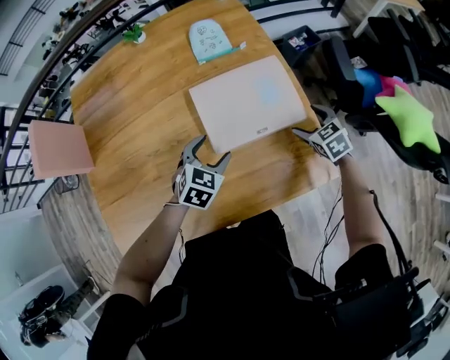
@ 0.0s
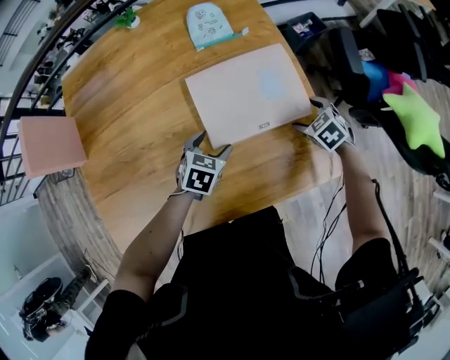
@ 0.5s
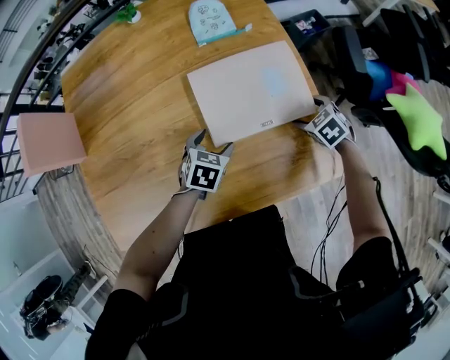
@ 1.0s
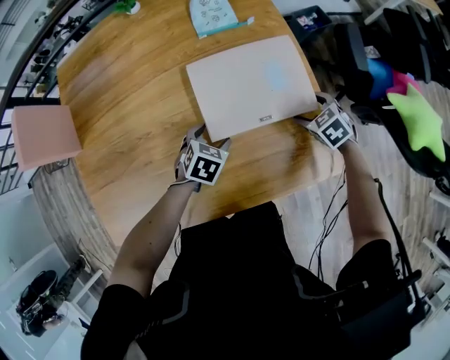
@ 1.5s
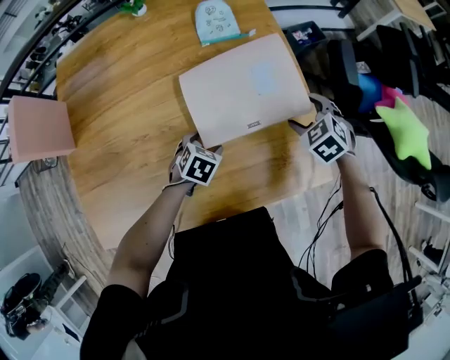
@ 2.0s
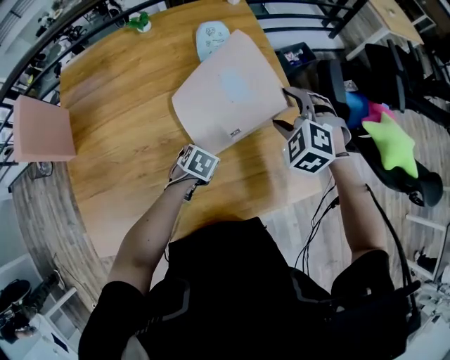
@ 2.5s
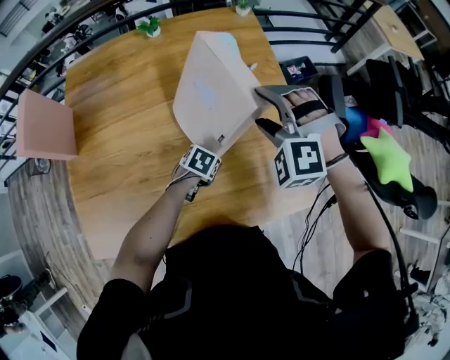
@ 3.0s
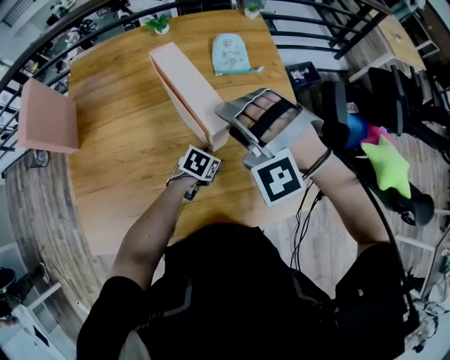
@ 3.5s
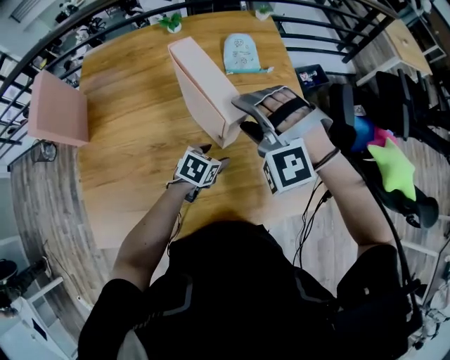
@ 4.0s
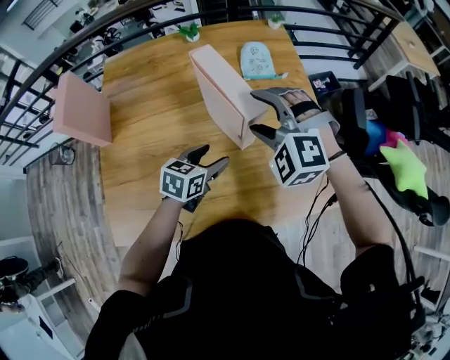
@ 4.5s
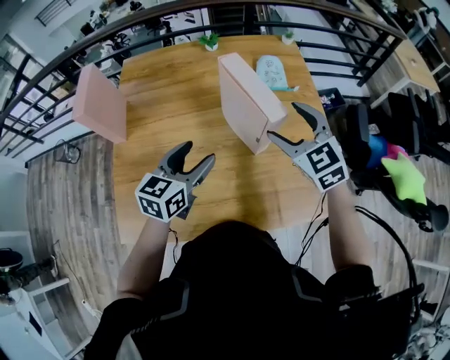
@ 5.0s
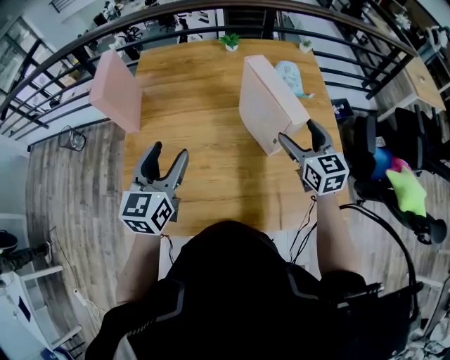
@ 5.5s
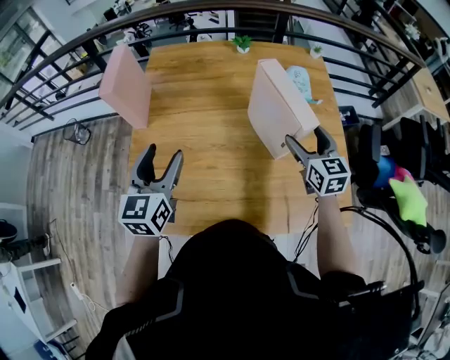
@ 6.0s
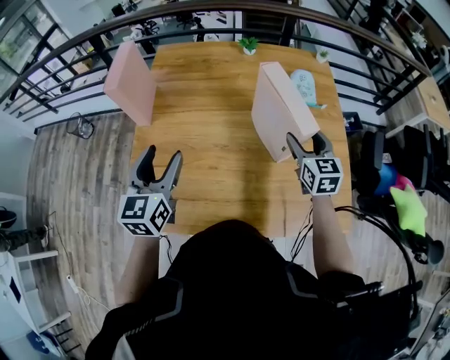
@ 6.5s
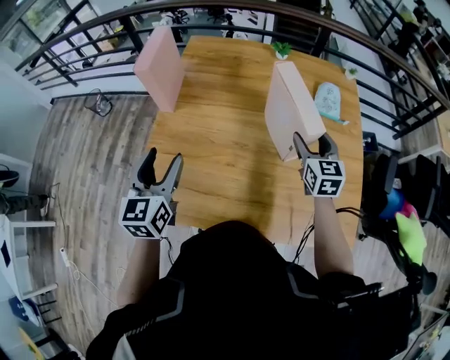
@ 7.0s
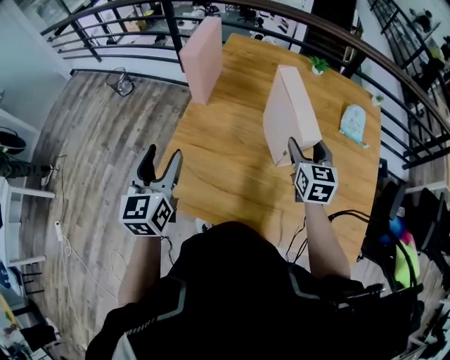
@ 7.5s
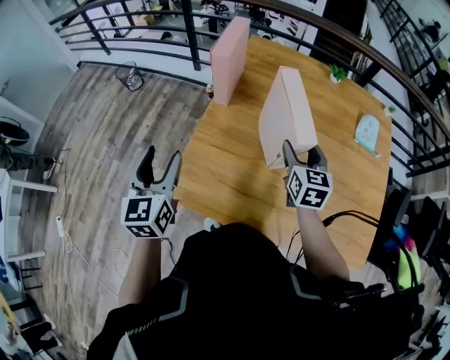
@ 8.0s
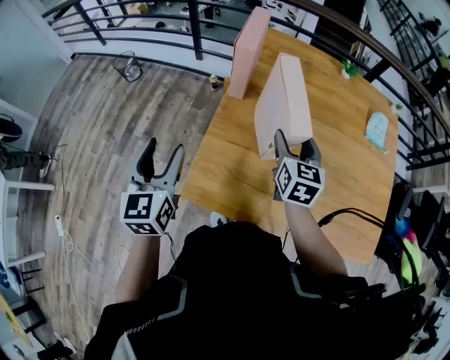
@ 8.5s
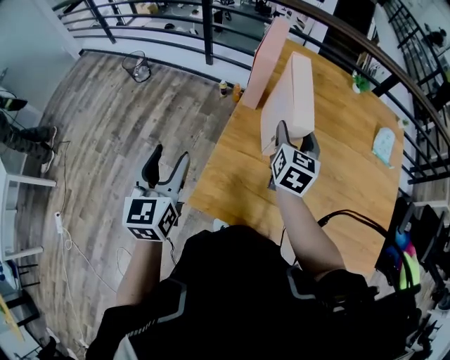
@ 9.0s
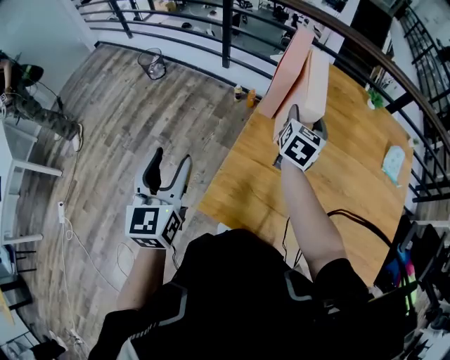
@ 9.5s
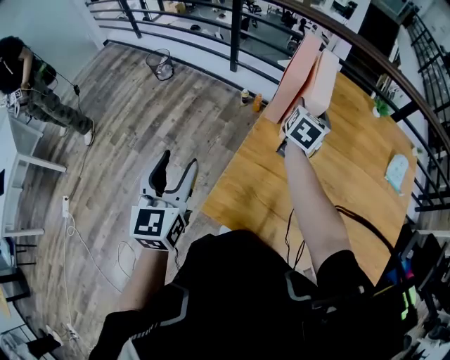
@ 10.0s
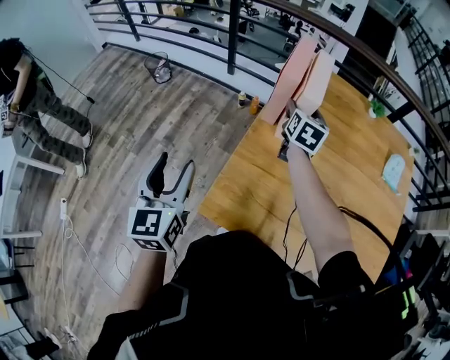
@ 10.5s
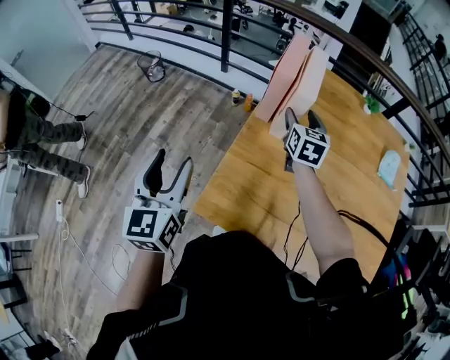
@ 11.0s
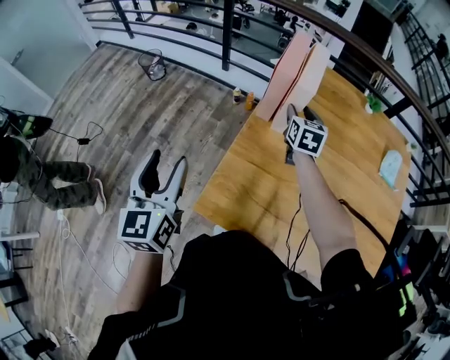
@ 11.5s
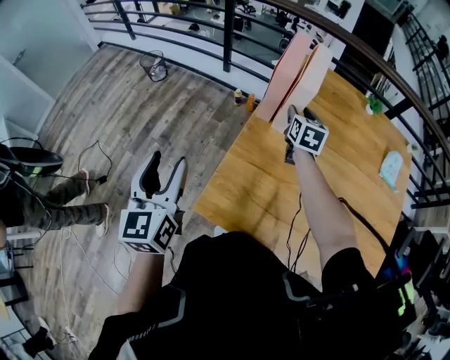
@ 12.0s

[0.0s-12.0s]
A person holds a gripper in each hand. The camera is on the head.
0.0s to 2.0s: The left gripper is displaced downward by about 10 cm, and rotates roughly 20 degrees. Meanwhile the right gripper ends up roughly 5 cm from where it was, and rotates approximately 20 degrees.
2.0s to 4.0s: The left gripper travels upward by some 5 cm, while the right gripper travels to the left and upward by approximately 30 cm, and rolls counterclockwise, seen from behind, by about 60 degrees.
4.0s to 6.0s: The left gripper changes place by some 40 cm, and angles its fingers upward, by approximately 40 degrees. The right gripper twists about 90 degrees clockwise, seen from behind.
6.0s to 8.0s: Both grippers travel together to the left, roughly 30 cm. The left gripper turns by some 30 degrees.
8.0s to 10.0s: The right gripper shifts approximately 25 cm forward and to the left, and rotates roughly 20 degrees, while the left gripper is displaced to the left by approximately 10 cm.

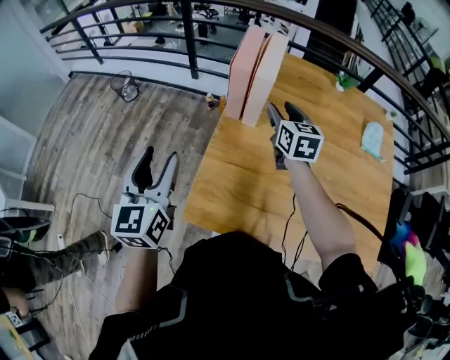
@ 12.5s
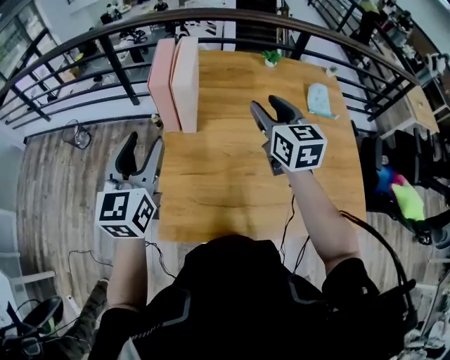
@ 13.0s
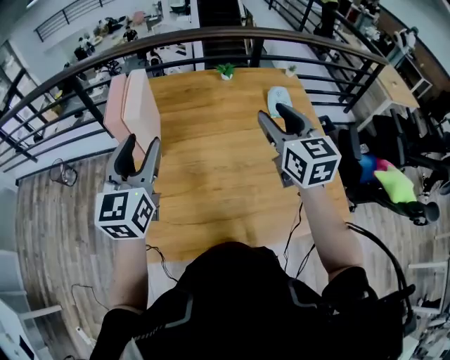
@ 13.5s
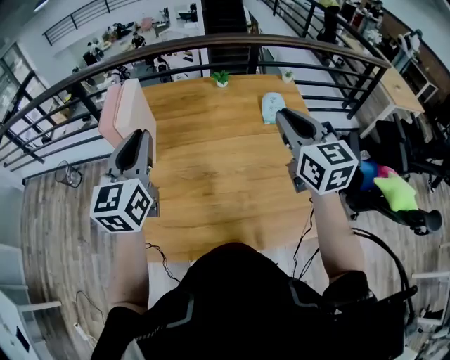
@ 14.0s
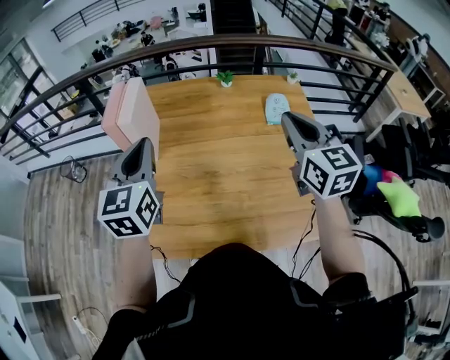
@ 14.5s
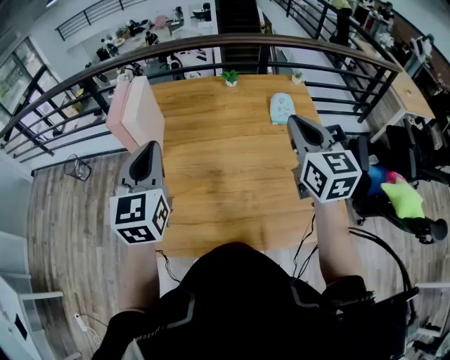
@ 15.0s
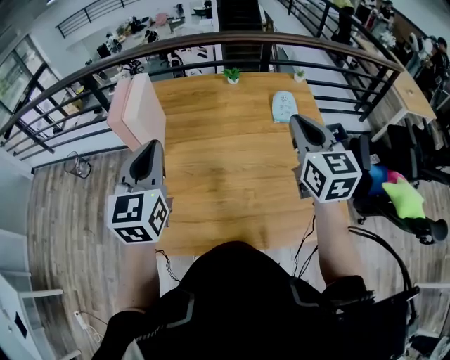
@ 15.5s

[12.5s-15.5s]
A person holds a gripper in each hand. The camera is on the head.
12.5s to 14.0s: The left gripper heads to the right, covering about 30 cm, changes its angle by about 20 degrees, and closes its fingers, while the right gripper goes about 40 cm to the right, upward and backward, and closes up.
14.0s to 15.5s: The grippers make only small movements.

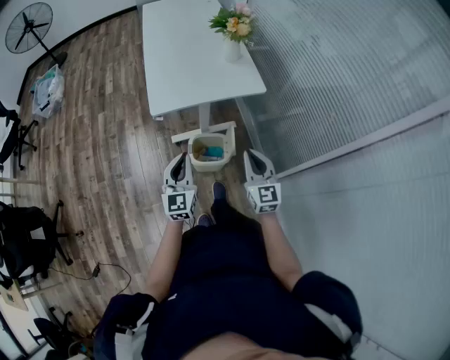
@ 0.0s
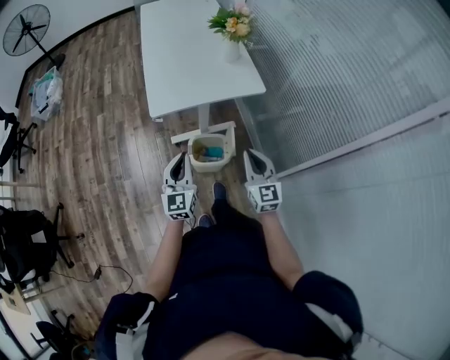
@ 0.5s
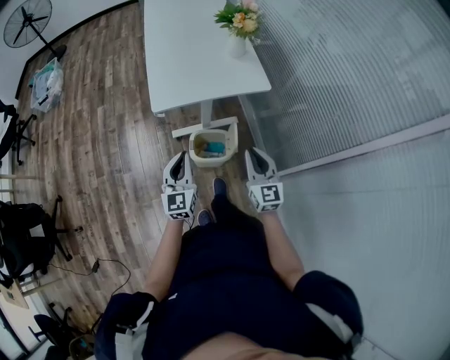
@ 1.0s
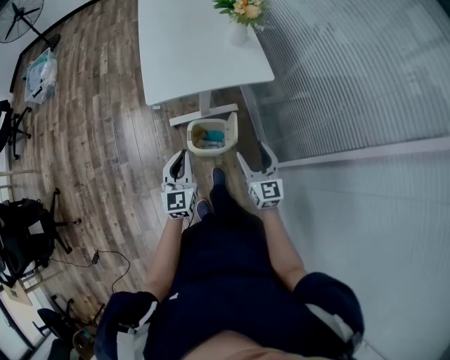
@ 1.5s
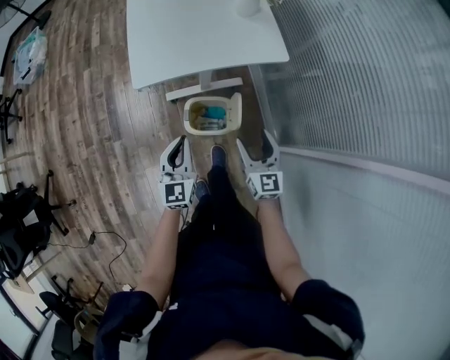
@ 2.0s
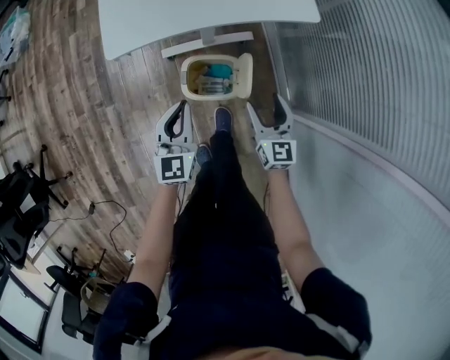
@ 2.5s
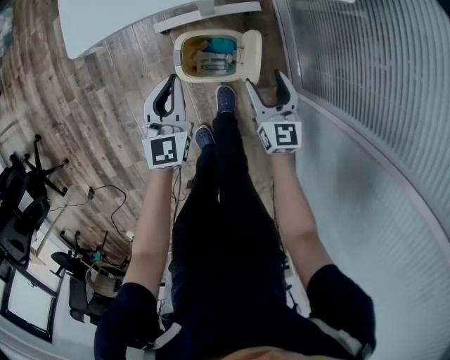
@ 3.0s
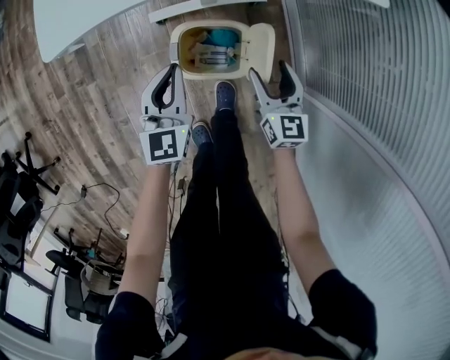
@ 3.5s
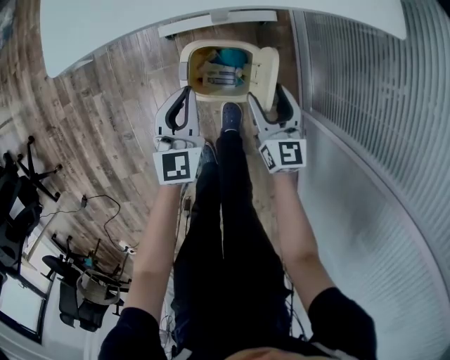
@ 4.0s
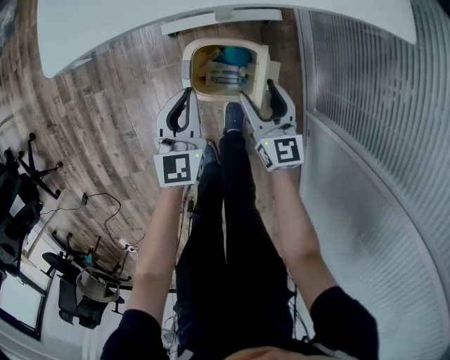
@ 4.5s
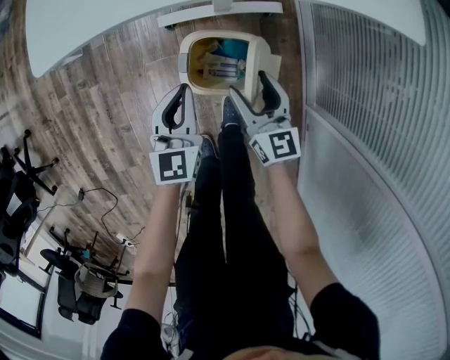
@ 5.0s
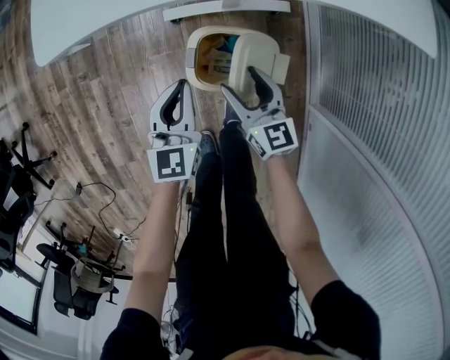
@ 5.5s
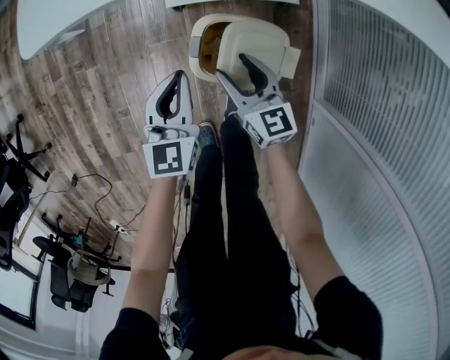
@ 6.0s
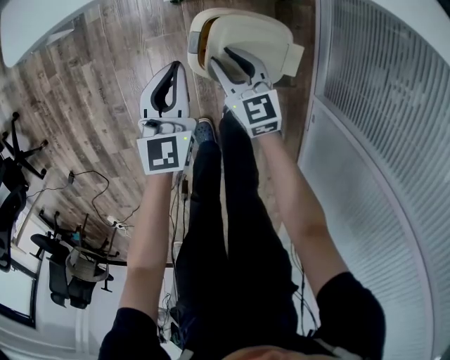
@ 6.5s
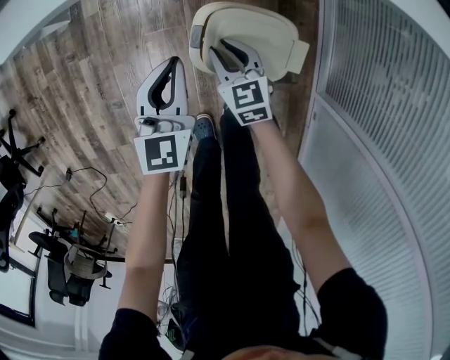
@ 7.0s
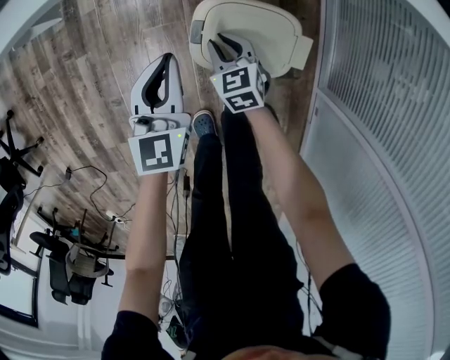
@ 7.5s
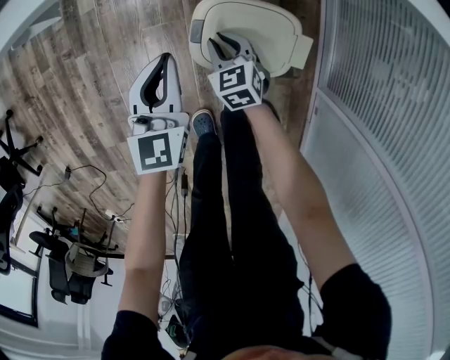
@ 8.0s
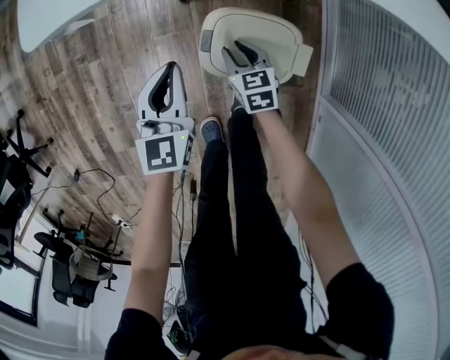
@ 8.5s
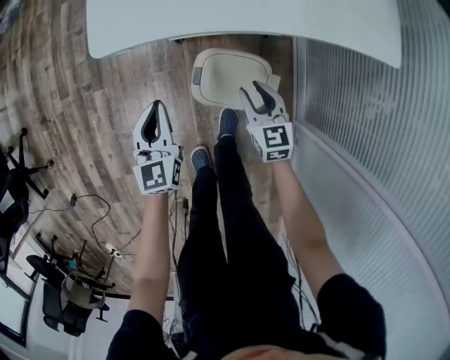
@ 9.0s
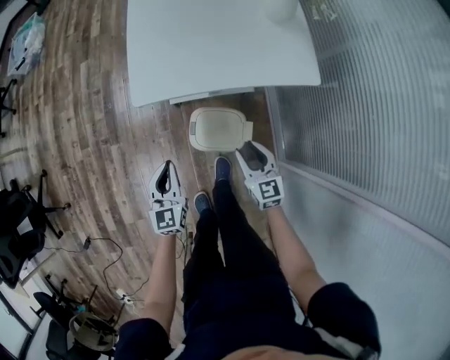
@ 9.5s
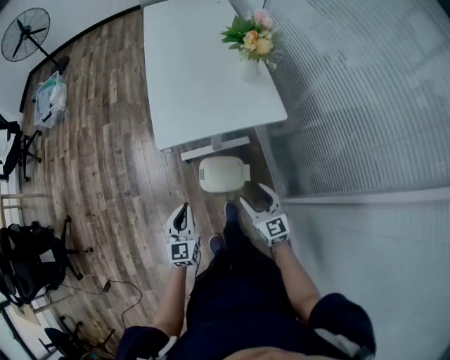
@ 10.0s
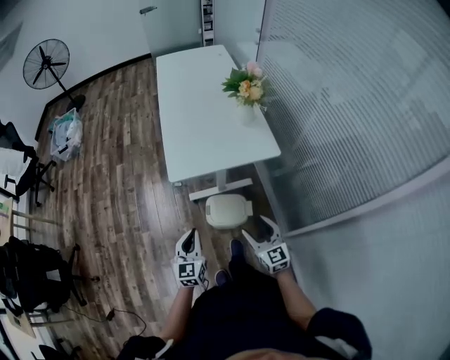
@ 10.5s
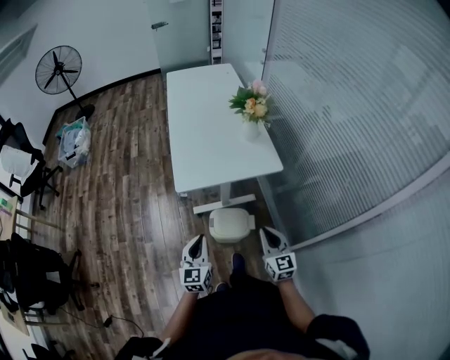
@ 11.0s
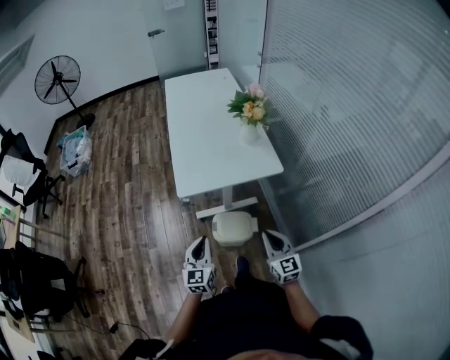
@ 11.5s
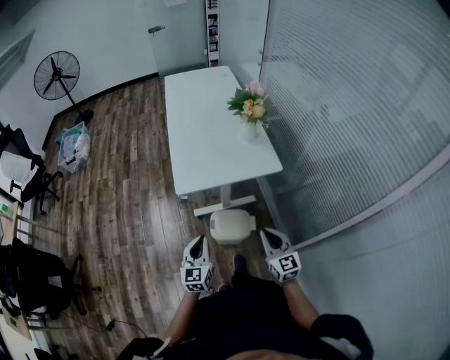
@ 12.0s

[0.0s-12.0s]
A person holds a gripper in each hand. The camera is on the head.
0.0s to 2.0s: Both grippers travel together downward and forward, approximately 15 cm. The right gripper opens up.
2.0s to 4.0s: The left gripper travels downward and forward by about 25 cm; the right gripper moves downward, about 30 cm.
4.0s to 6.0s: The left gripper is displaced to the left by approximately 5 cm. The right gripper shifts approximately 15 cm to the left and downward, and turns by approximately 20 degrees.
6.0s to 8.0s: The right gripper is displaced downward by approximately 10 cm, changes its angle by some 30 degrees, and closes up.
8.0s to 10.0s: The right gripper goes approximately 50 cm upward, turns by about 30 degrees, and opens up. Meanwhile the left gripper goes approximately 35 cm upward and backward.
10.0s to 12.0s: The right gripper shifts approximately 10 cm upward and backward, and closes. The left gripper shifts approximately 5 cm upward.
